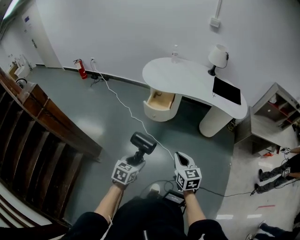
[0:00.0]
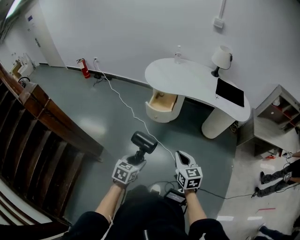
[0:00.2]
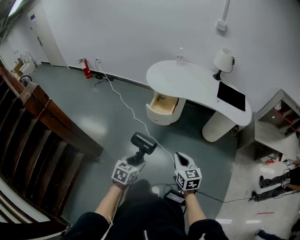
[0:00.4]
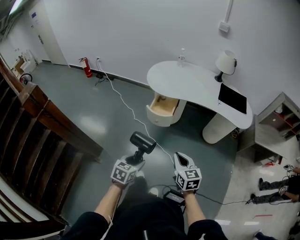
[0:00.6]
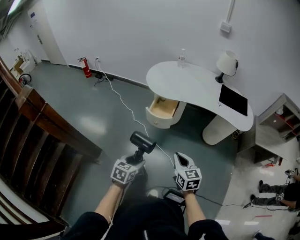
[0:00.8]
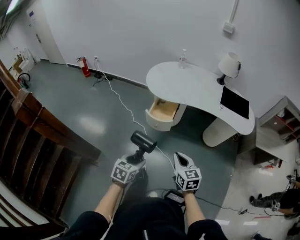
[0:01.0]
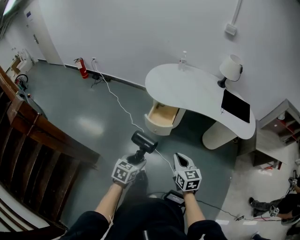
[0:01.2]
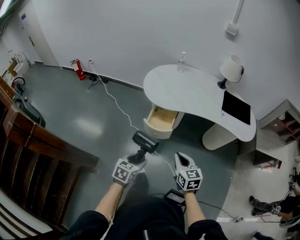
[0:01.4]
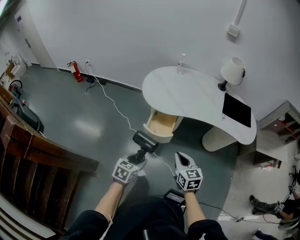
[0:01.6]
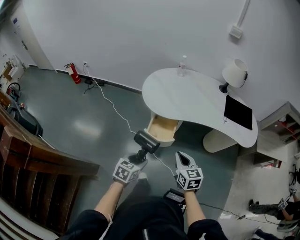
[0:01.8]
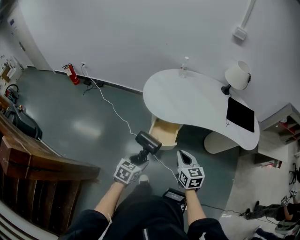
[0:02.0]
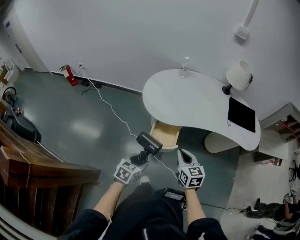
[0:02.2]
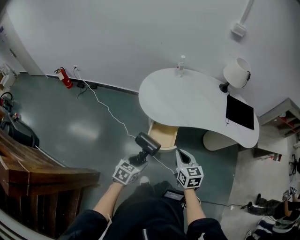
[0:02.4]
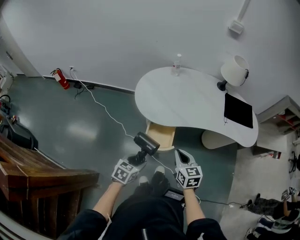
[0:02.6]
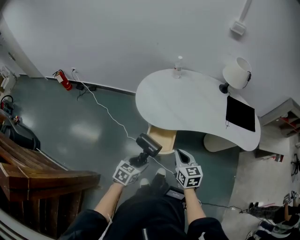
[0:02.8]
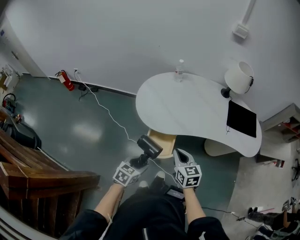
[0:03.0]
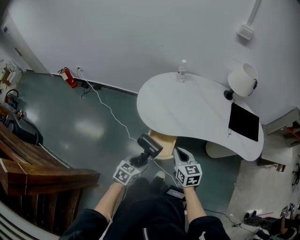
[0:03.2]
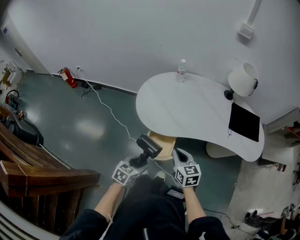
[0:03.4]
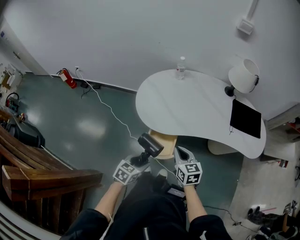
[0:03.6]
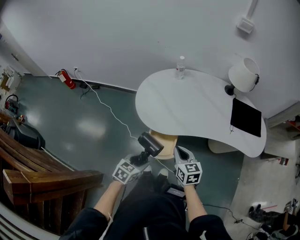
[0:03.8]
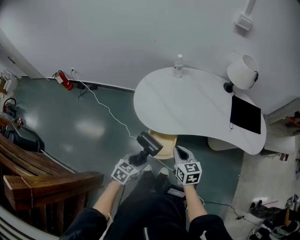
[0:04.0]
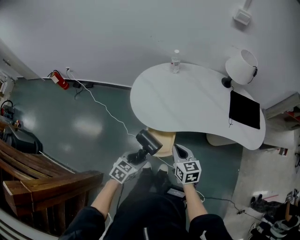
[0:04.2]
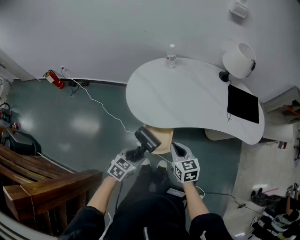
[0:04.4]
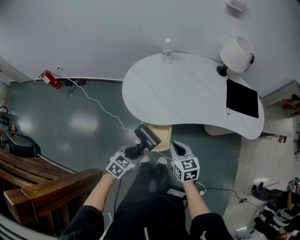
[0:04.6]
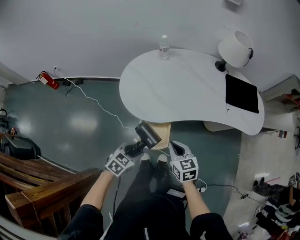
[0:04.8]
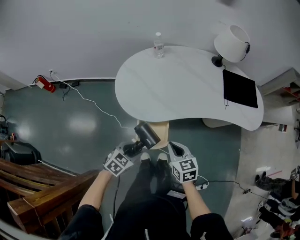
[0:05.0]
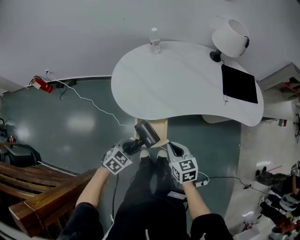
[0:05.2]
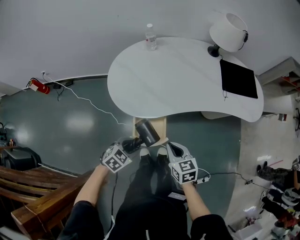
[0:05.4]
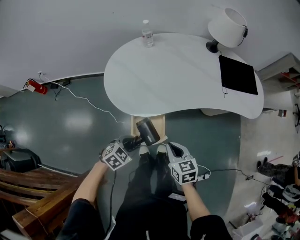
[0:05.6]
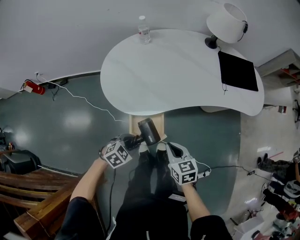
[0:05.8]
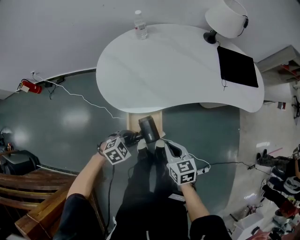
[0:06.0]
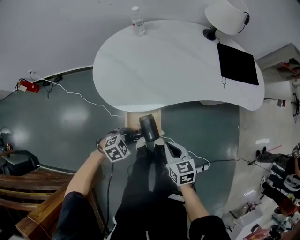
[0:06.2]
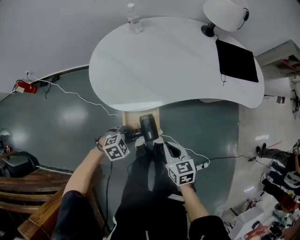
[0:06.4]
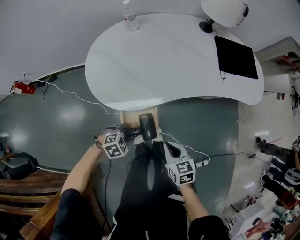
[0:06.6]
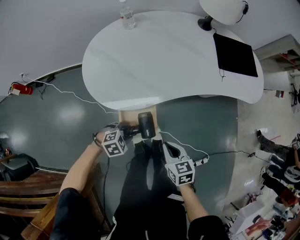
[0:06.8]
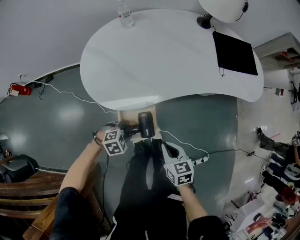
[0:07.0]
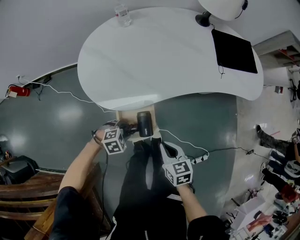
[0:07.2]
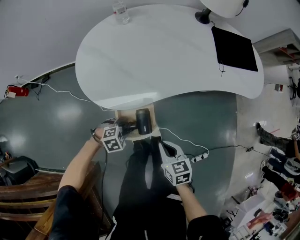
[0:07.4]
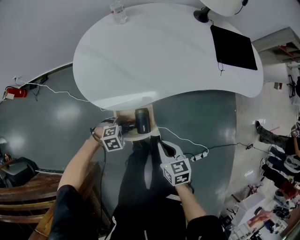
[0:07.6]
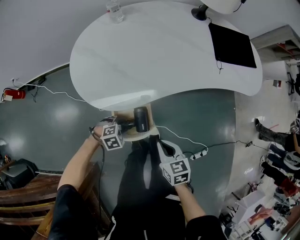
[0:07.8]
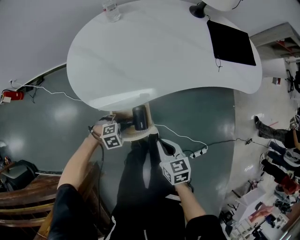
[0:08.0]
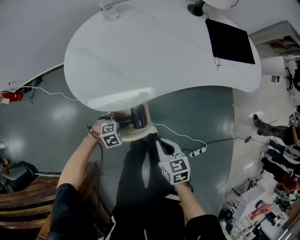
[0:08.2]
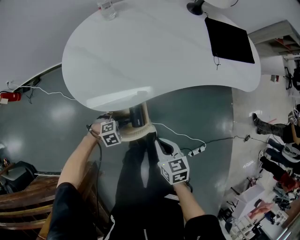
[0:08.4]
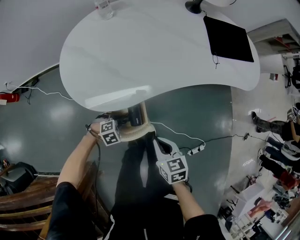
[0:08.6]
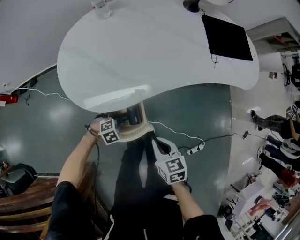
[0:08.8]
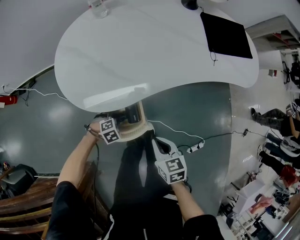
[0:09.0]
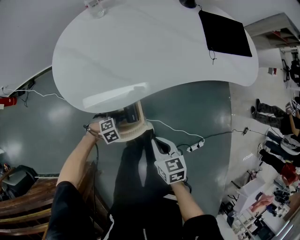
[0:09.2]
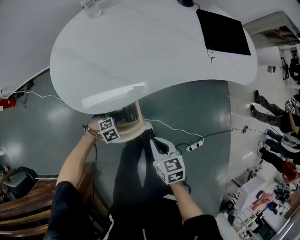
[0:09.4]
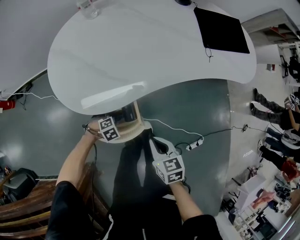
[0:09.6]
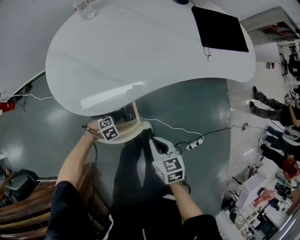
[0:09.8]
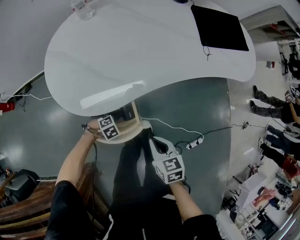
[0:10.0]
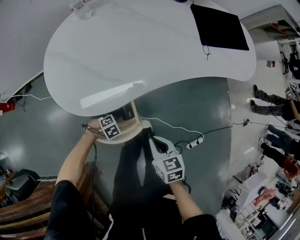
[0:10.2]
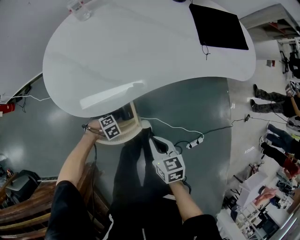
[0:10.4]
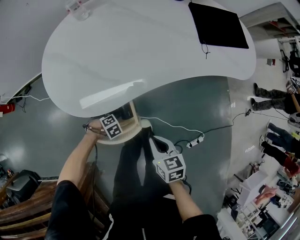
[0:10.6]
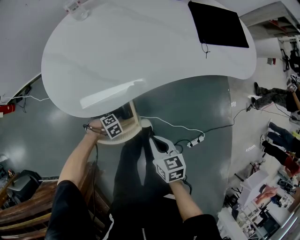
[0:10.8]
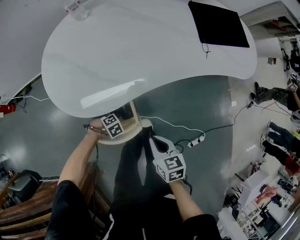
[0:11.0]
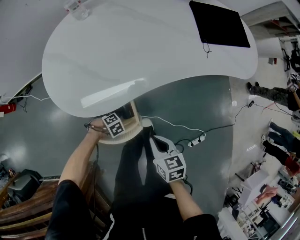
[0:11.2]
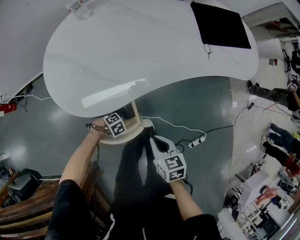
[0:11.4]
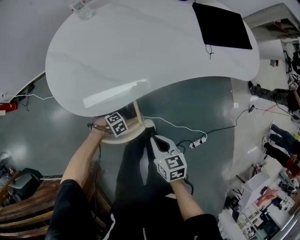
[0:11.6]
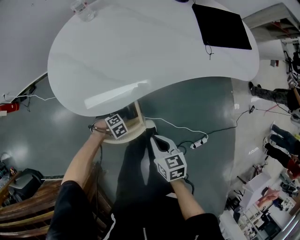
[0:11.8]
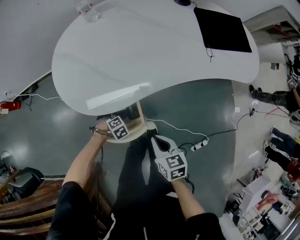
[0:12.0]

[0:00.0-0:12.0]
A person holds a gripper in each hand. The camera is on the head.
0:00.0 to 0:01.6: The grippers both shift forward by approximately 25 cm.
0:01.6 to 0:03.0: The two grippers go some 15 cm forward.
0:03.0 to 0:04.4: The left gripper moves forward, some 5 cm.
0:04.4 to 0:06.0: The two grippers go approximately 10 cm downward. The left gripper changes its angle by some 40 degrees.
0:06.0 to 0:07.6: The left gripper shifts roughly 10 cm downward, and rotates about 20 degrees.
0:07.6 to 0:09.0: The left gripper is displaced downward by some 10 cm.
0:09.0 to 0:12.0: The grippers stay close to where they were, moving slightly.

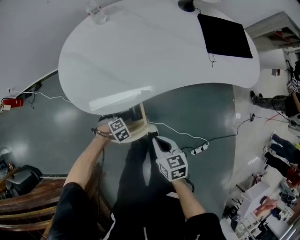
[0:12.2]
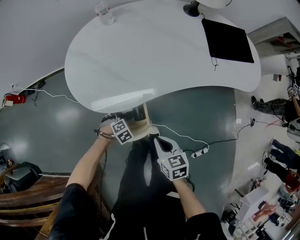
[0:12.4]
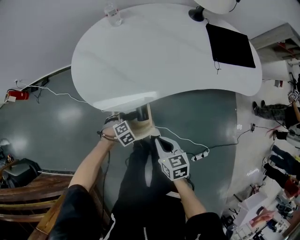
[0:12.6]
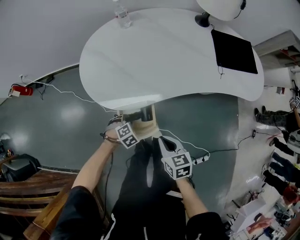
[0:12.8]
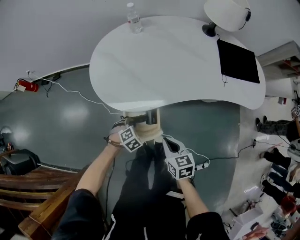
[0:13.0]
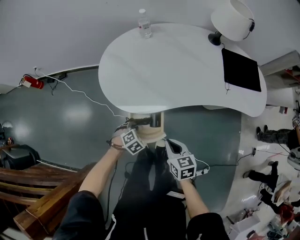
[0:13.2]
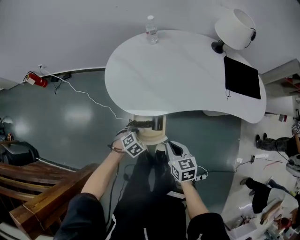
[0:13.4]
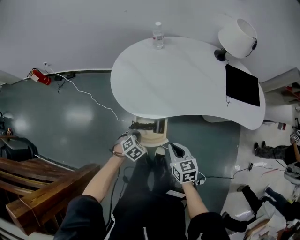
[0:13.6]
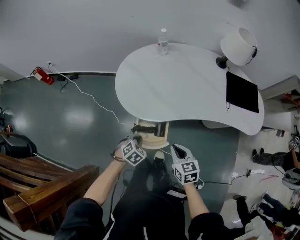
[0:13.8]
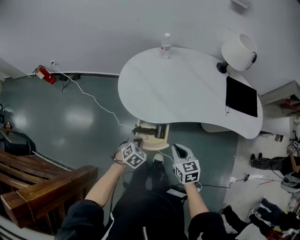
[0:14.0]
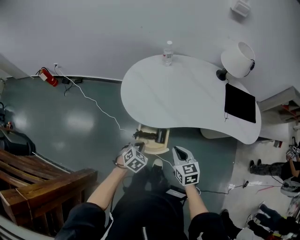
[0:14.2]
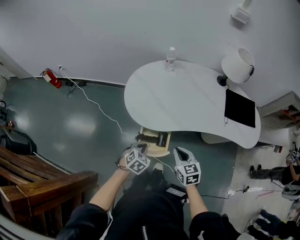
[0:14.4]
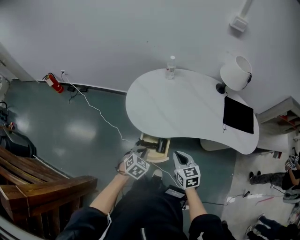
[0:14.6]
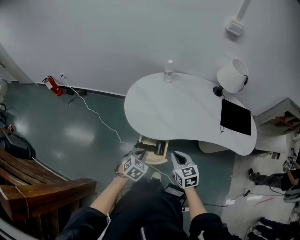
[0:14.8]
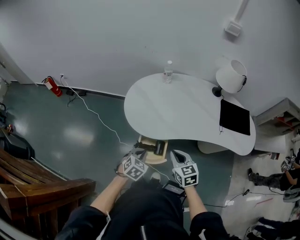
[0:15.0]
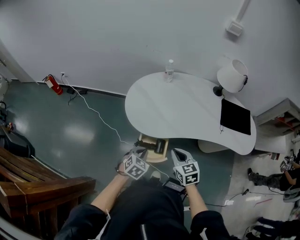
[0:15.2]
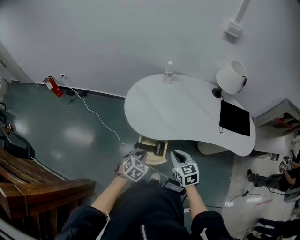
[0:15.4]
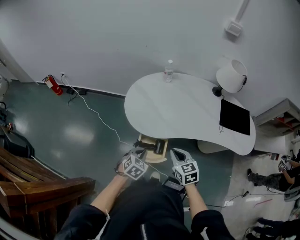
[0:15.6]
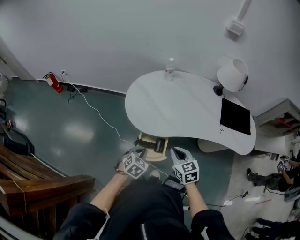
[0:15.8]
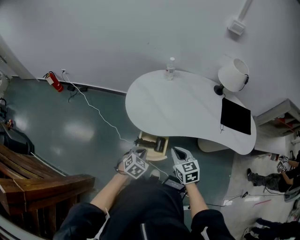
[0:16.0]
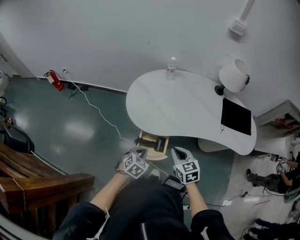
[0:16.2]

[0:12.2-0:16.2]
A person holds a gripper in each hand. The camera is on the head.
0:12.2 to 0:13.6: The right gripper goes roughly 5 cm upward, while the left gripper heads upward, covering approximately 15 cm, swivels some 40 degrees, and closes.
0:13.6 to 0:14.8: The right gripper moves upward, about 10 cm; the left gripper moves upward, approximately 15 cm, and rotates about 20 degrees.
0:14.8 to 0:16.2: The grippers stay close to where they were, moving slightly.

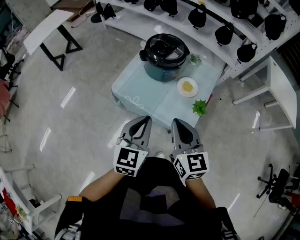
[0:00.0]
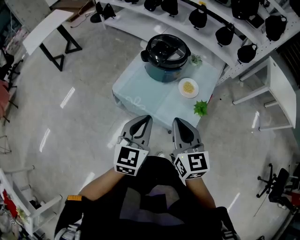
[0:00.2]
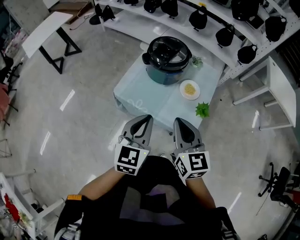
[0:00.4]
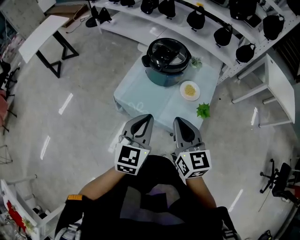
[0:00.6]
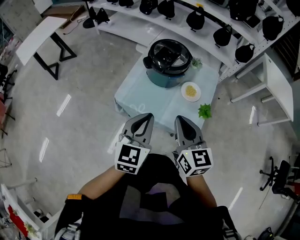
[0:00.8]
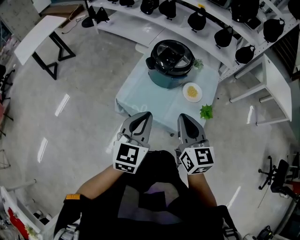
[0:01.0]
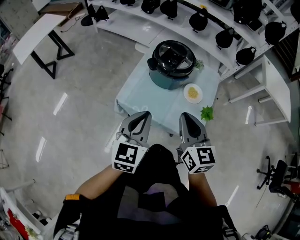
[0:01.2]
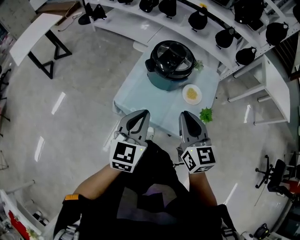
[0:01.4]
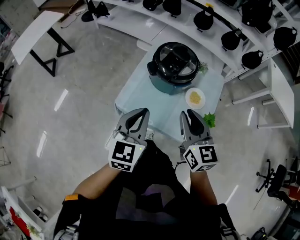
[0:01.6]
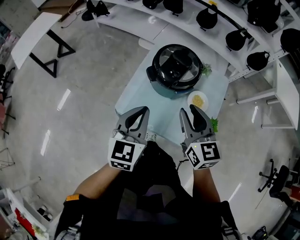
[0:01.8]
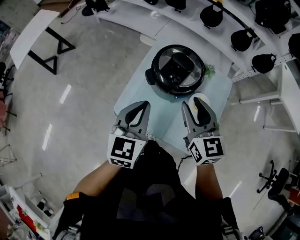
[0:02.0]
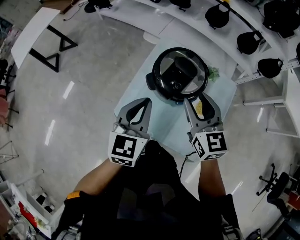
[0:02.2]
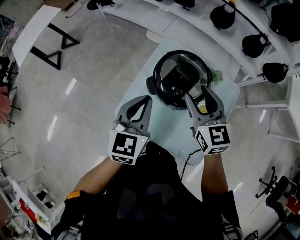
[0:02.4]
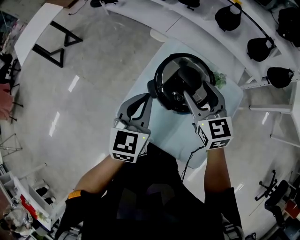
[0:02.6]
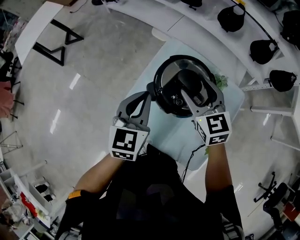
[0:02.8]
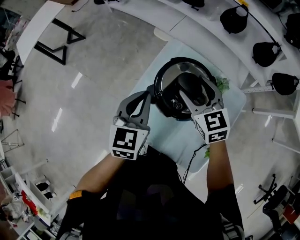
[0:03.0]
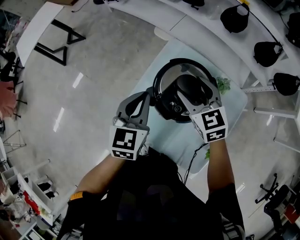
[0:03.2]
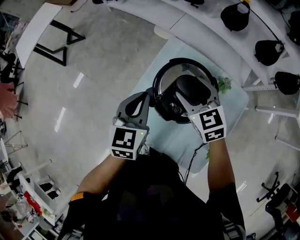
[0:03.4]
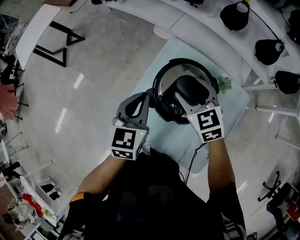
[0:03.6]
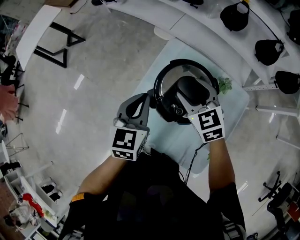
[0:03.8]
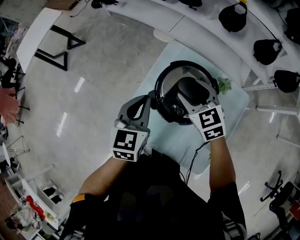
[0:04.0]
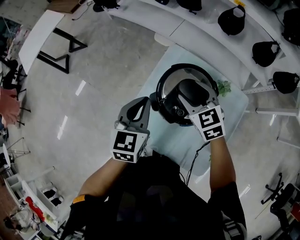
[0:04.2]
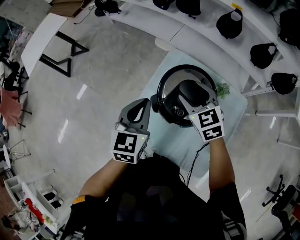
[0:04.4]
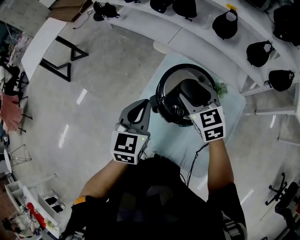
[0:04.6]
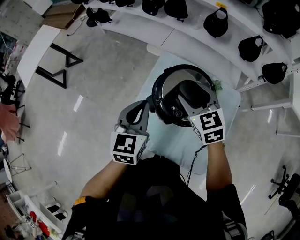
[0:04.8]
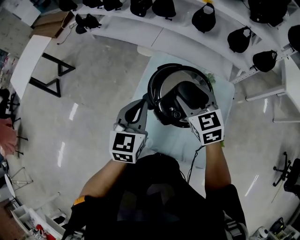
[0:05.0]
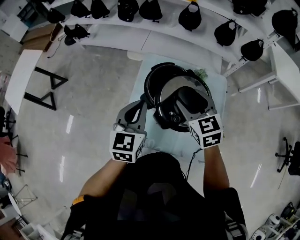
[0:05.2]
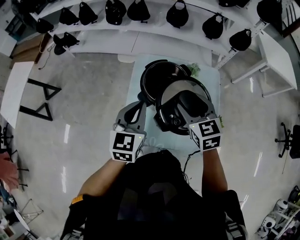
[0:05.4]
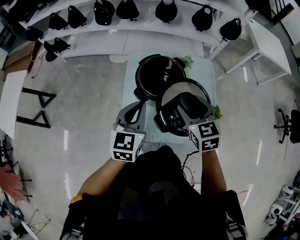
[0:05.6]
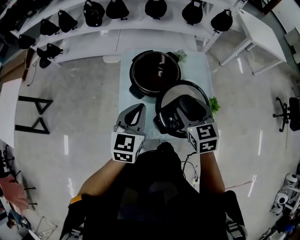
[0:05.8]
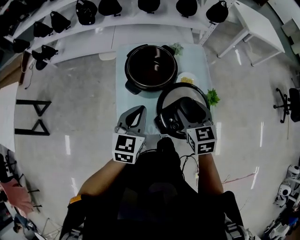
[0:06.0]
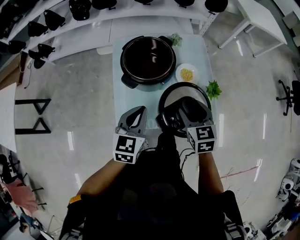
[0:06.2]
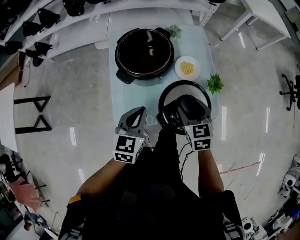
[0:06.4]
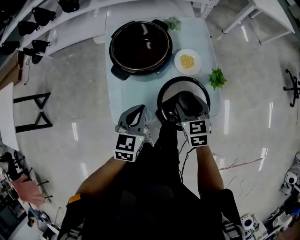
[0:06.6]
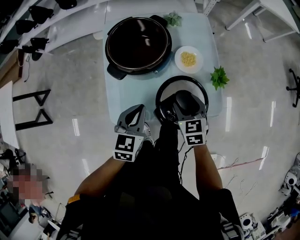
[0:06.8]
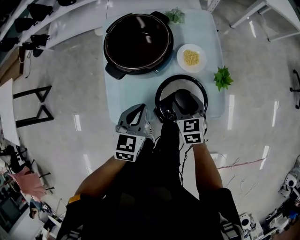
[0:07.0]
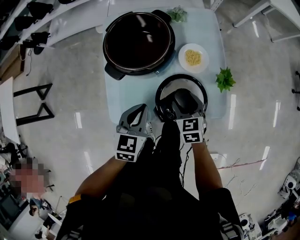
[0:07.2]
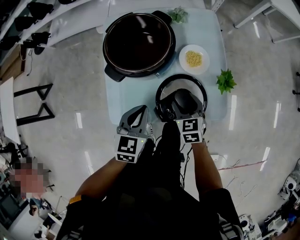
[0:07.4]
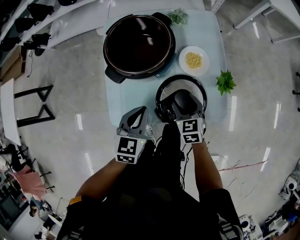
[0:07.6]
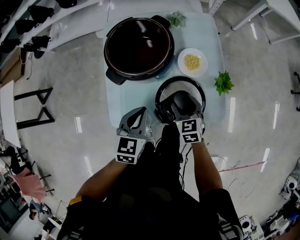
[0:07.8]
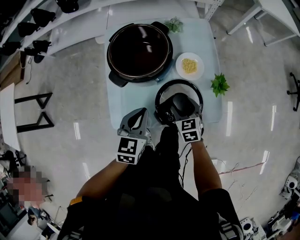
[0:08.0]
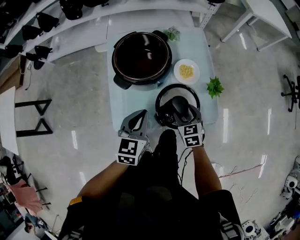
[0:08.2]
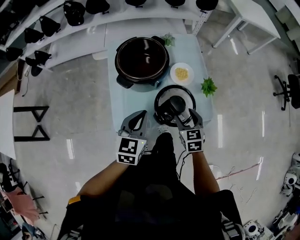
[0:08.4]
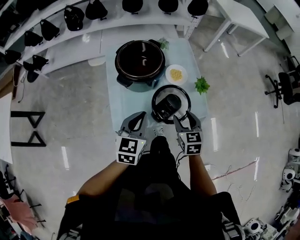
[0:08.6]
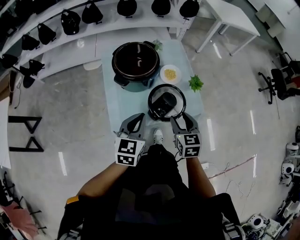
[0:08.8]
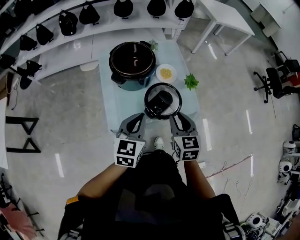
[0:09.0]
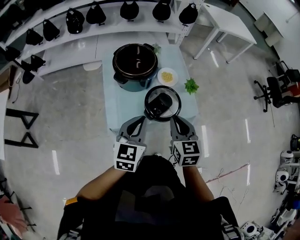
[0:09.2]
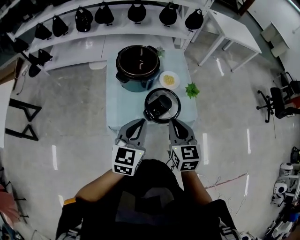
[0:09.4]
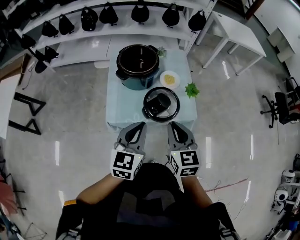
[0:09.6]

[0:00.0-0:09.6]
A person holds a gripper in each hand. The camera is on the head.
0:00.0 to 0:01.6: Both grippers move forward and to the left, about 15 cm.
0:01.6 to 0:03.2: Both grippers travel together forward, approximately 30 cm. The right gripper swivels roughly 30 degrees, and opens up.
0:03.2 to 0:04.8: The right gripper changes place by some 5 cm.
0:04.8 to 0:06.4: The right gripper changes place by roughly 30 cm, and changes its angle by approximately 40 degrees. The left gripper moves roughly 20 cm, and swivels about 40 degrees.
0:06.4 to 0:08.0: The left gripper goes approximately 5 cm downward. Meanwhile the right gripper heads downward, covering some 15 cm.
0:08.0 to 0:09.6: The right gripper moves upward and backward, about 35 cm, swivels roughly 20 degrees, and closes, while the left gripper moves backward and upward, some 25 cm.
